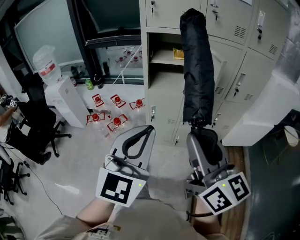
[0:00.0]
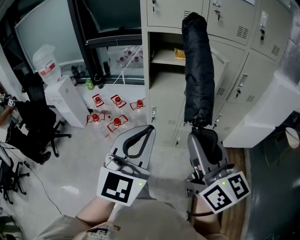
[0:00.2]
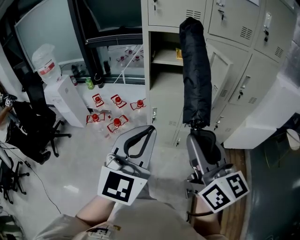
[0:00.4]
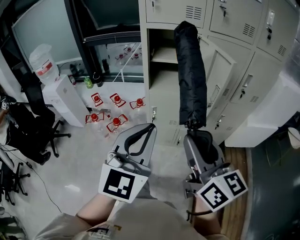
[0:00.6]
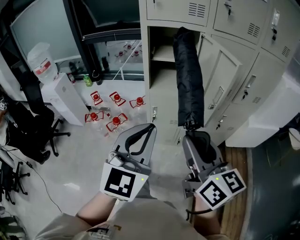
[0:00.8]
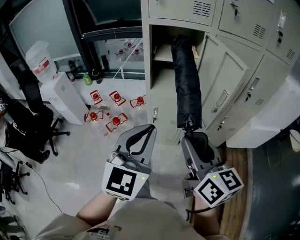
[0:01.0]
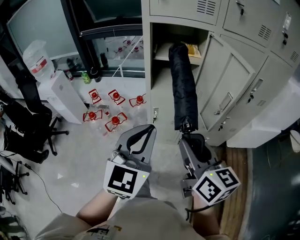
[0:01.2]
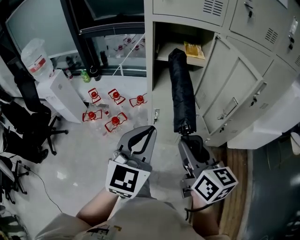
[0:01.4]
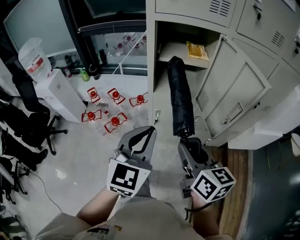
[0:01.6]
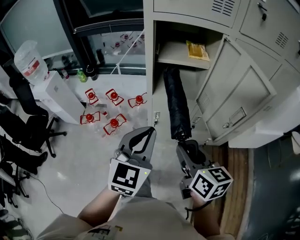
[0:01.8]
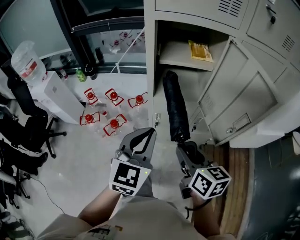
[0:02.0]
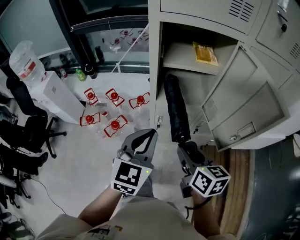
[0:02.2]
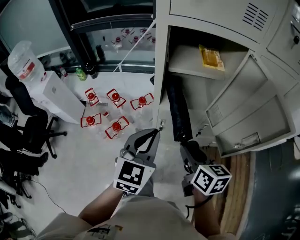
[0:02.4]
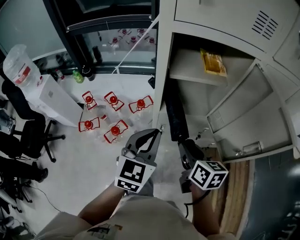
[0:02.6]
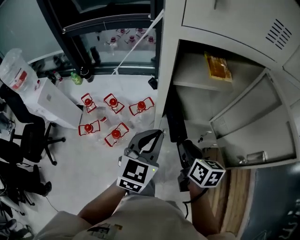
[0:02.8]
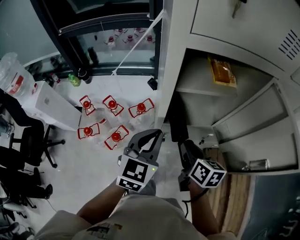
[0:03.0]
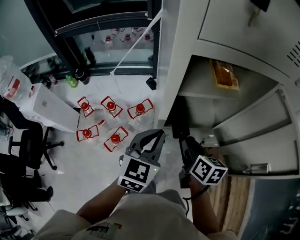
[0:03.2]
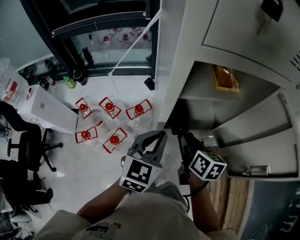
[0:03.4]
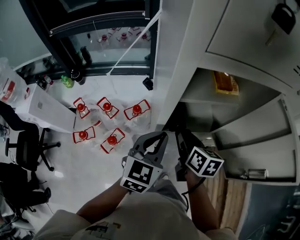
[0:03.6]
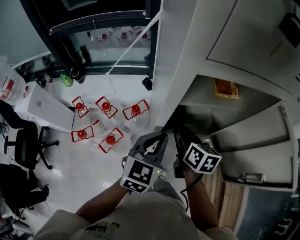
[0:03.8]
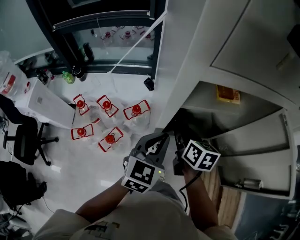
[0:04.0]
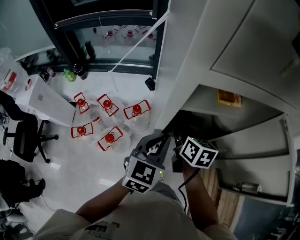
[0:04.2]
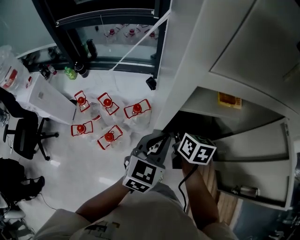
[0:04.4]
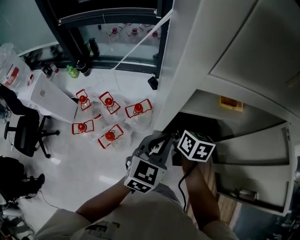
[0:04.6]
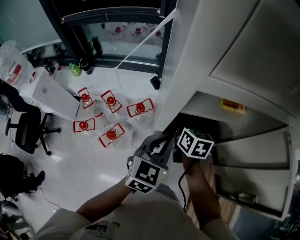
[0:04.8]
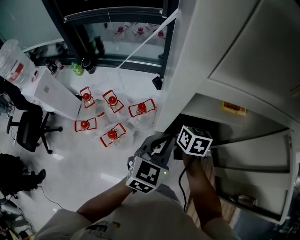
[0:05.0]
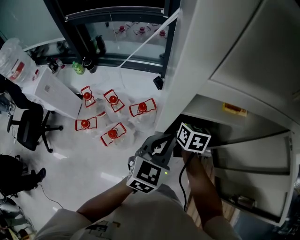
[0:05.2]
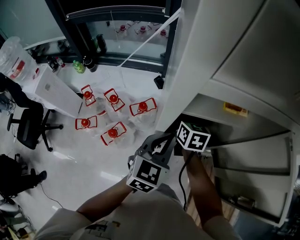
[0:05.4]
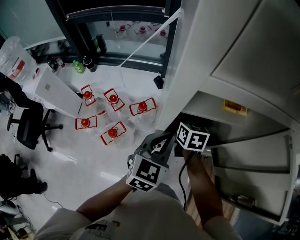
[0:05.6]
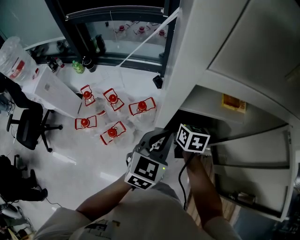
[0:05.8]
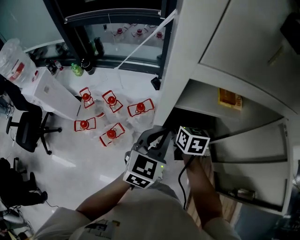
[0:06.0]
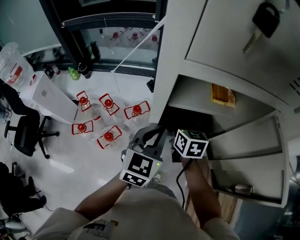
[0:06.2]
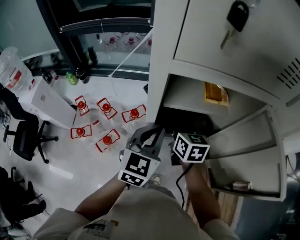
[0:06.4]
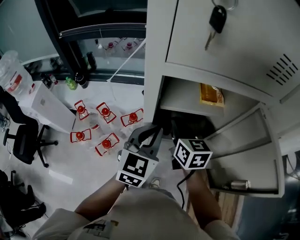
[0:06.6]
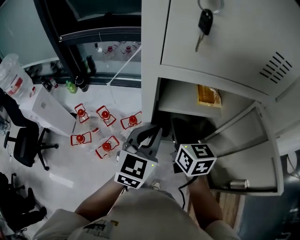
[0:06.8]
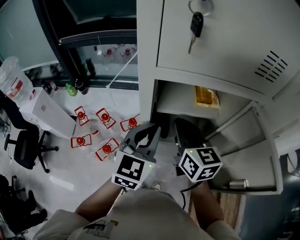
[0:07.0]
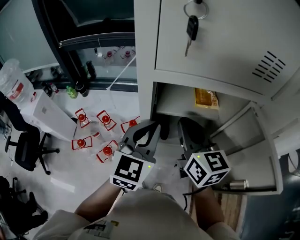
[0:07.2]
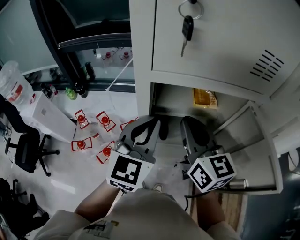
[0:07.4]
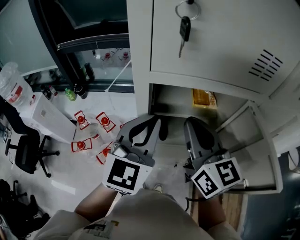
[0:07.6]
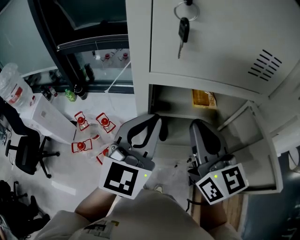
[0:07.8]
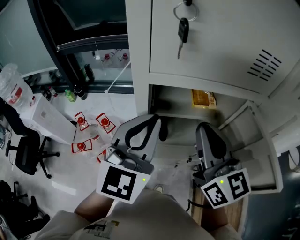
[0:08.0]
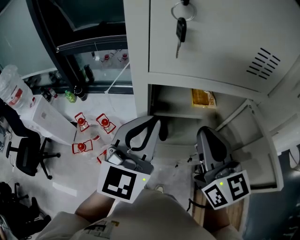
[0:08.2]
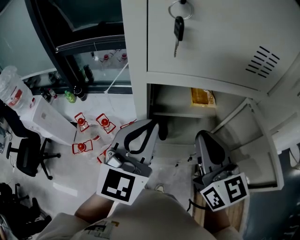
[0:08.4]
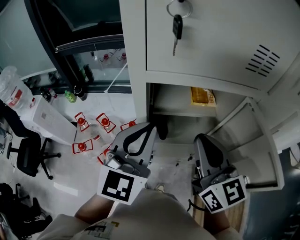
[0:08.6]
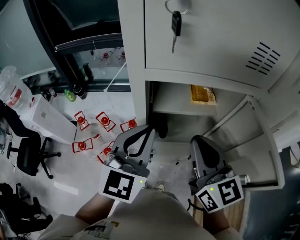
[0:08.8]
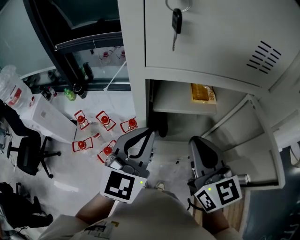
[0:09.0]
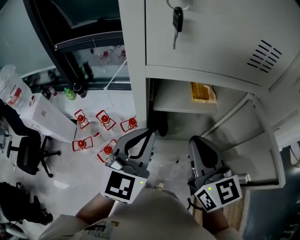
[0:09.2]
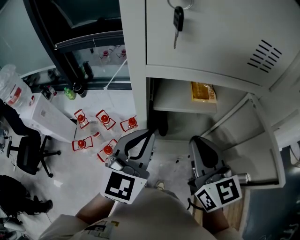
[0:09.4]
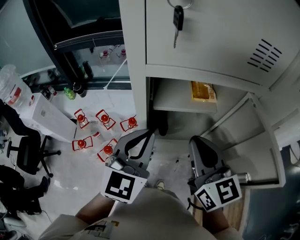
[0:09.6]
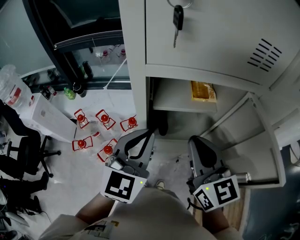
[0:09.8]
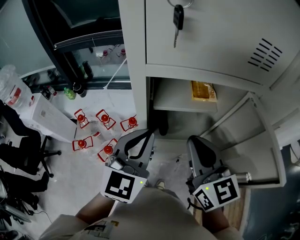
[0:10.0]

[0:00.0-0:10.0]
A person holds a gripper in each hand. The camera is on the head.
0:00.0 to 0:01.4: Both grippers travel together forward and downward, about 20 cm. The right gripper changes its angle by approximately 20 degrees.
0:01.4 to 0:02.8: The left gripper heads forward, covering about 25 cm. The right gripper is displaced forward and downward by approximately 30 cm, and swivels roughly 20 degrees.
0:02.8 to 0:04.2: The right gripper moves forward, some 15 cm. The left gripper shifts roughly 10 cm forward.
0:04.2 to 0:05.8: The right gripper travels forward by some 5 cm.
0:05.8 to 0:07.2: The right gripper is displaced upward and backward by some 25 cm, and swivels roughly 30 degrees. The left gripper is displaced upward by roughly 15 cm.
0:07.2 to 0:08.6: The left gripper heads upward, covering approximately 5 cm. Meanwhile the right gripper shifts about 5 cm backward.
0:08.6 to 0:10.0: The grippers make only small movements.

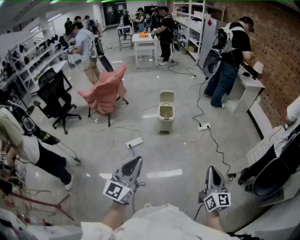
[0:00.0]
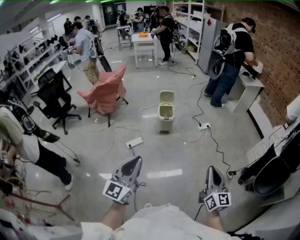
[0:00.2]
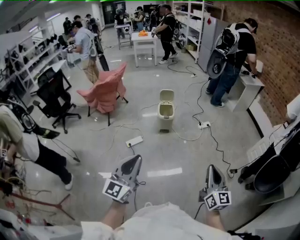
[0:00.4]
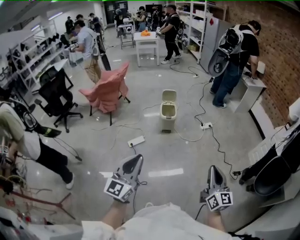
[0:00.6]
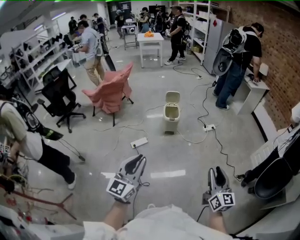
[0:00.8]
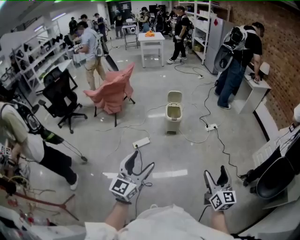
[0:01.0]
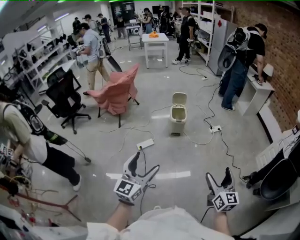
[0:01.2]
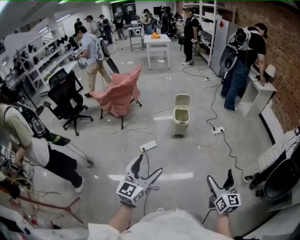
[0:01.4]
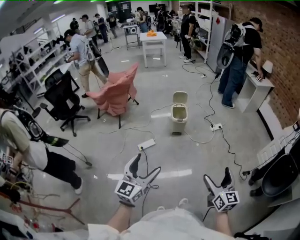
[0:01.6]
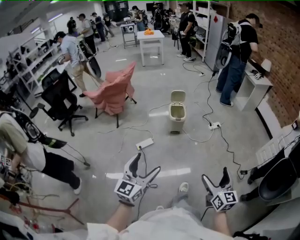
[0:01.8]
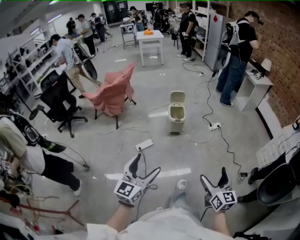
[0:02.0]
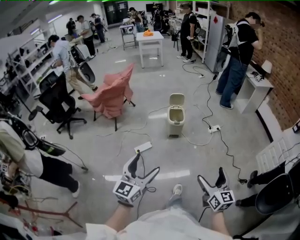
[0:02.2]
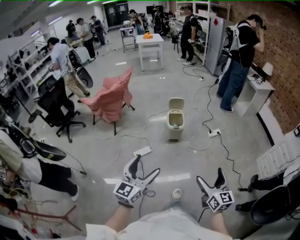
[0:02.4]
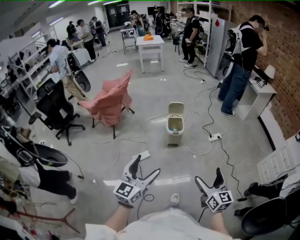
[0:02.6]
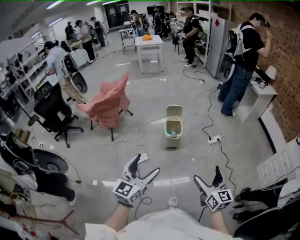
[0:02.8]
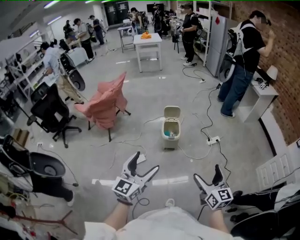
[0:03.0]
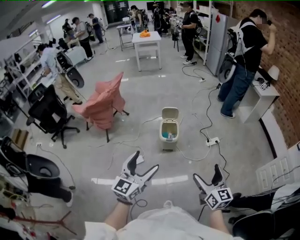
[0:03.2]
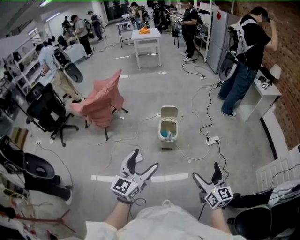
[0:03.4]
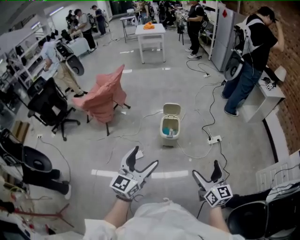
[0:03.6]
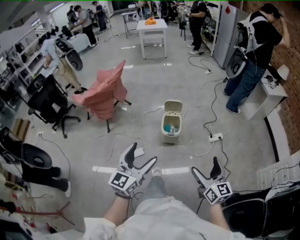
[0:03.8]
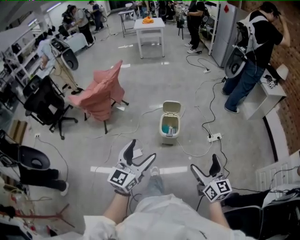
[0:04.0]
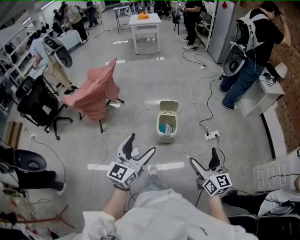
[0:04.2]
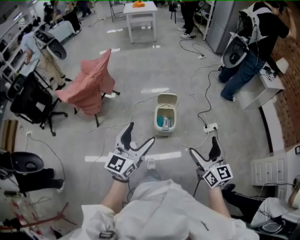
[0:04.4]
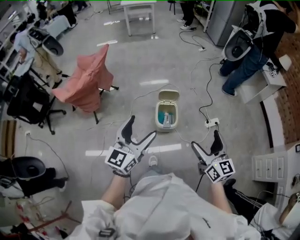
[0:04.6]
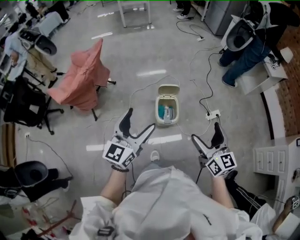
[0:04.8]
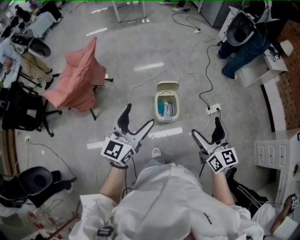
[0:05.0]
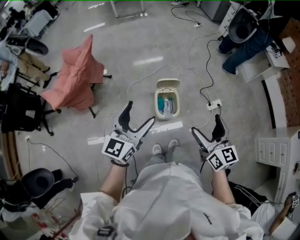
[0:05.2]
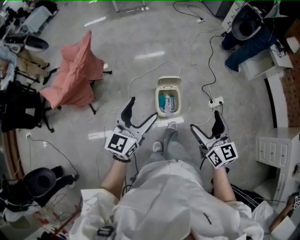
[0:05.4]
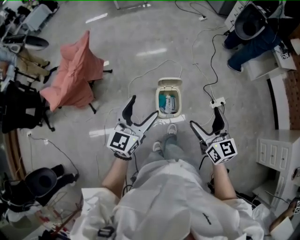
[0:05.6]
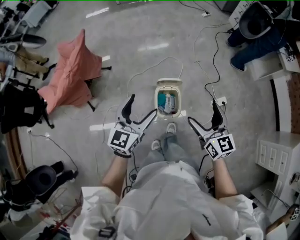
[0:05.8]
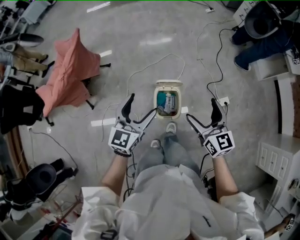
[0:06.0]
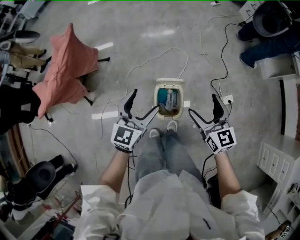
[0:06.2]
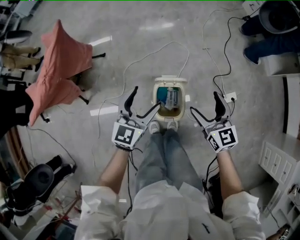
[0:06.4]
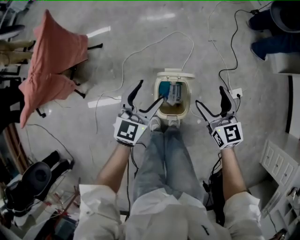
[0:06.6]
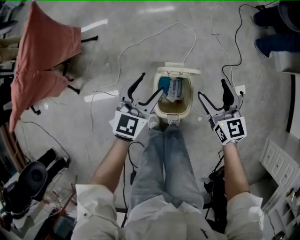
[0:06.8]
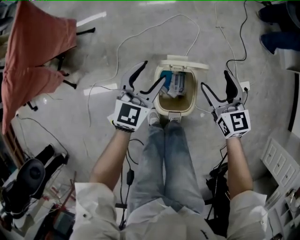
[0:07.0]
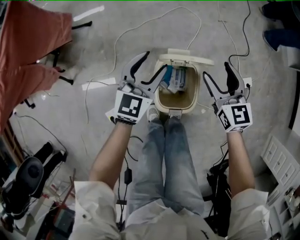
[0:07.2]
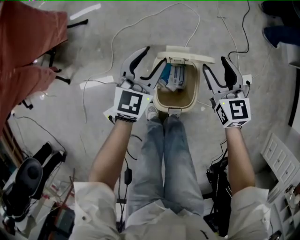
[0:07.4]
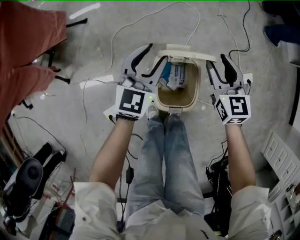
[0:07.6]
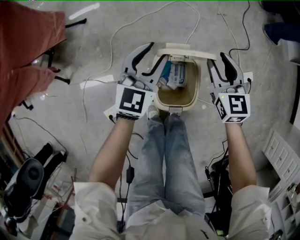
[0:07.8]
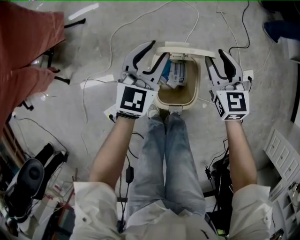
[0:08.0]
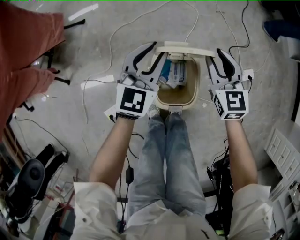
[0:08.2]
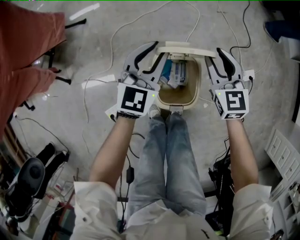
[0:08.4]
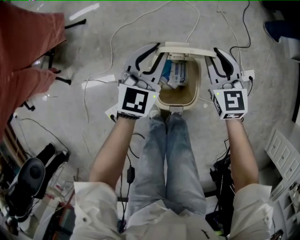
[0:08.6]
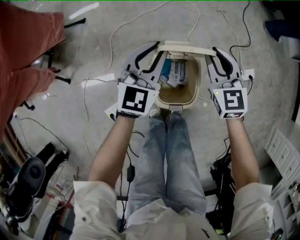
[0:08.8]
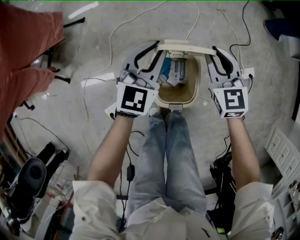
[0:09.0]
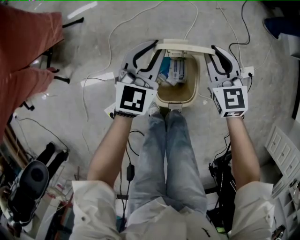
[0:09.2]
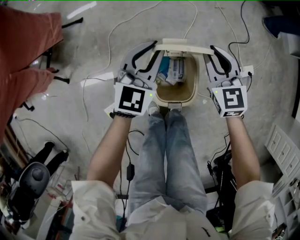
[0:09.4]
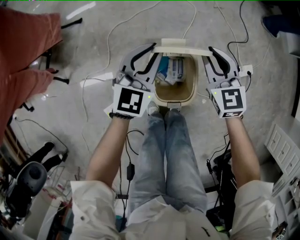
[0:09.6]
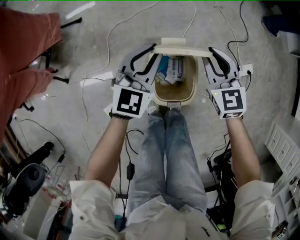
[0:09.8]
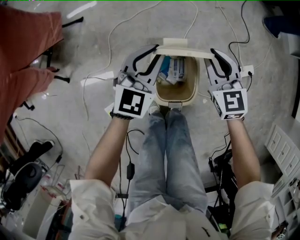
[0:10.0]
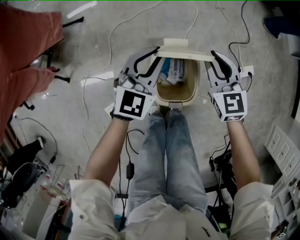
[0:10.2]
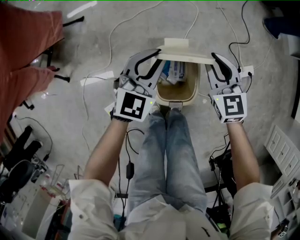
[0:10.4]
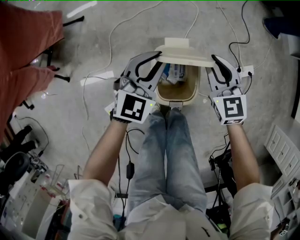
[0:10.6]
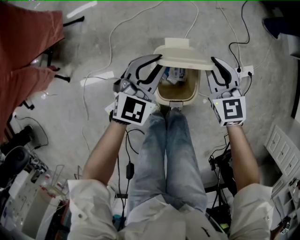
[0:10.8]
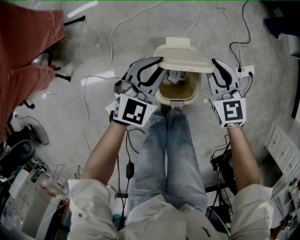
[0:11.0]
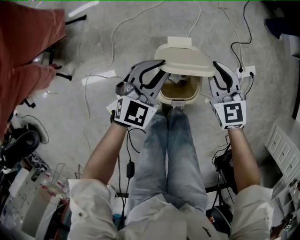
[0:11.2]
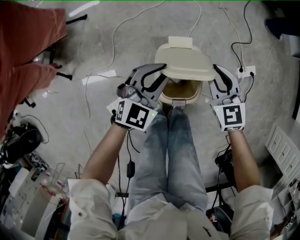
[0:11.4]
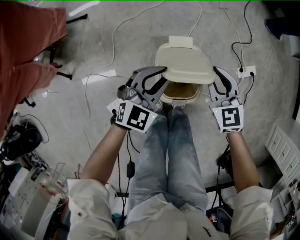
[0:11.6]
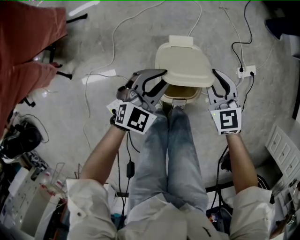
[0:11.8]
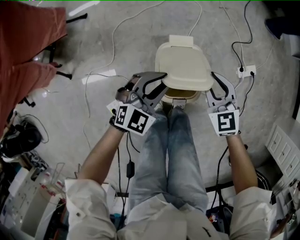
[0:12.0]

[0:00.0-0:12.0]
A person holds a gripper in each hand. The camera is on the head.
0:00.0 to 0:01.6: The left gripper moves to the left and downward, some 10 cm, and opens its fingers, while the right gripper heads to the left, covering approximately 10 cm, and opens.
0:01.6 to 0:03.0: The grippers both shift forward by about 30 cm.
0:03.0 to 0:04.4: The grippers both shift forward by some 30 cm.
0:04.4 to 0:06.0: The left gripper travels forward and downward by some 40 cm; the right gripper shifts about 40 cm forward.
0:06.0 to 0:07.6: Both grippers travel together downward and forward, roughly 40 cm. The left gripper closes, while the right gripper closes.
0:07.6 to 0:10.4: The grippers make only small movements.
0:10.4 to 0:12.0: The grippers both shift backward by roughly 10 cm.

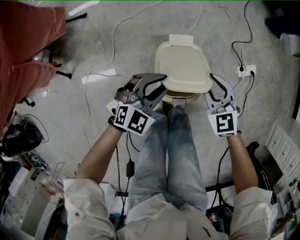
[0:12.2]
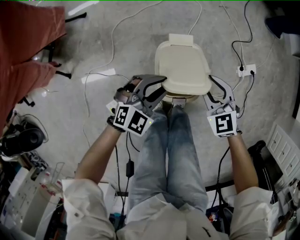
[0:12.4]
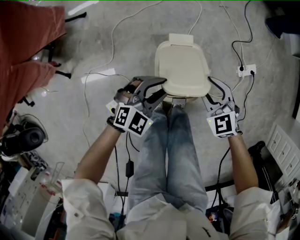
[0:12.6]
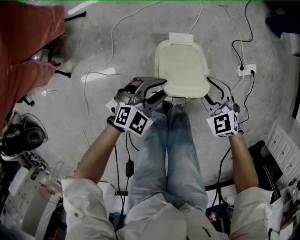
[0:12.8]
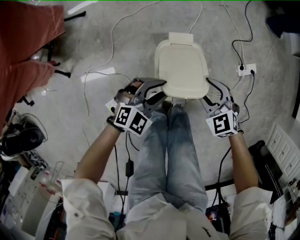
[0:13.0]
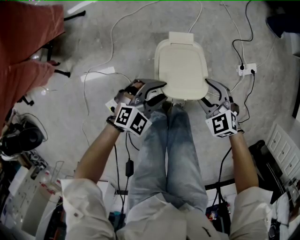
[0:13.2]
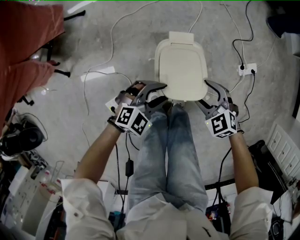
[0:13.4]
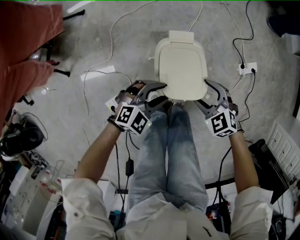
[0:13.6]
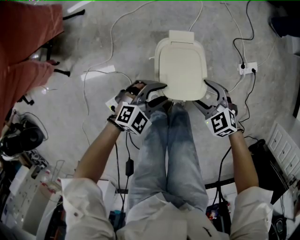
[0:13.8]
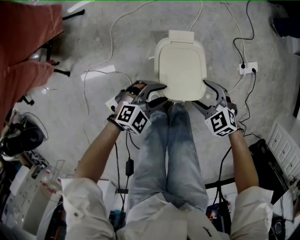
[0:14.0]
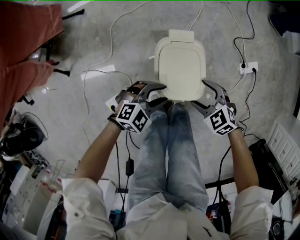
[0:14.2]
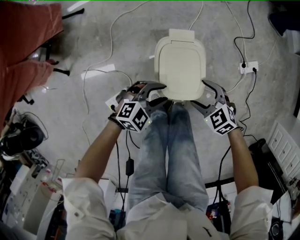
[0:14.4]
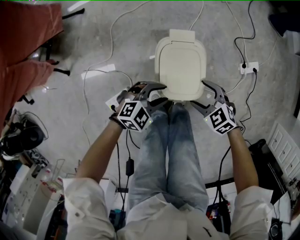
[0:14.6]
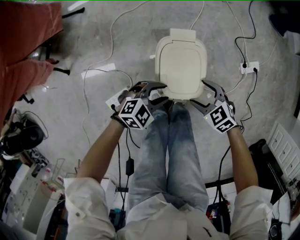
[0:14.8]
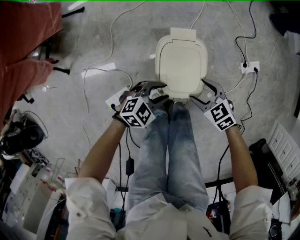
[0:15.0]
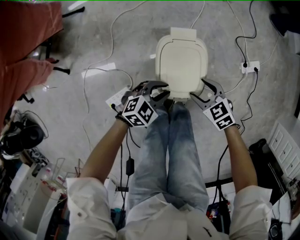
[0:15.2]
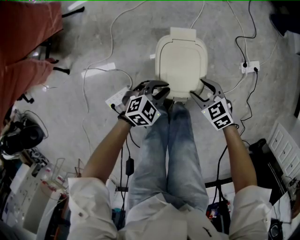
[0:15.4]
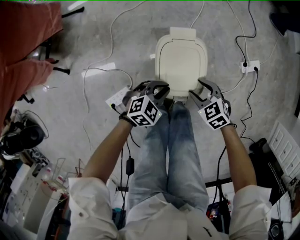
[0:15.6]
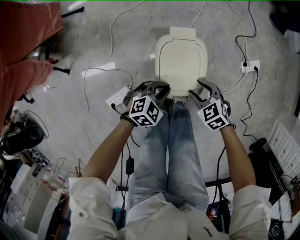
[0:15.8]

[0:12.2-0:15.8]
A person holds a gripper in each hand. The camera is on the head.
0:12.2 to 0:14.0: The right gripper moves approximately 10 cm, swivels roughly 30 degrees, and opens; the left gripper changes place by some 10 cm.
0:14.0 to 0:15.8: The left gripper travels downward by roughly 5 cm, and closes up.
